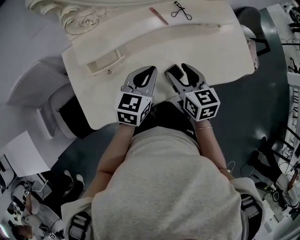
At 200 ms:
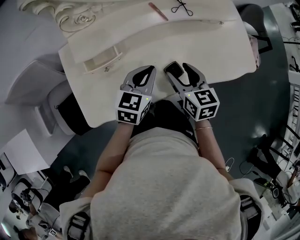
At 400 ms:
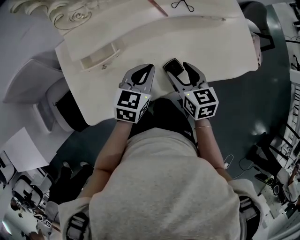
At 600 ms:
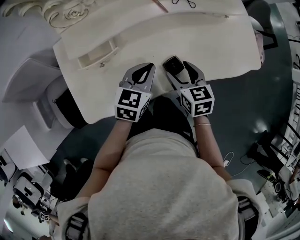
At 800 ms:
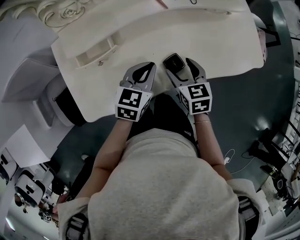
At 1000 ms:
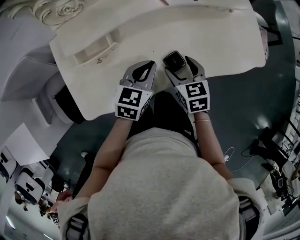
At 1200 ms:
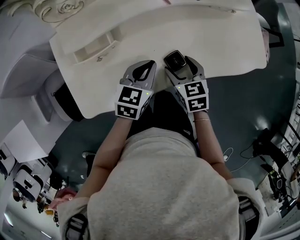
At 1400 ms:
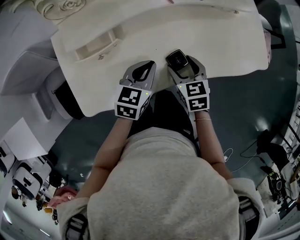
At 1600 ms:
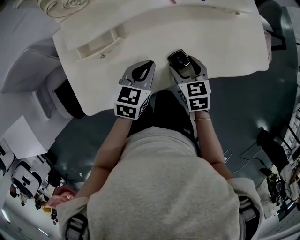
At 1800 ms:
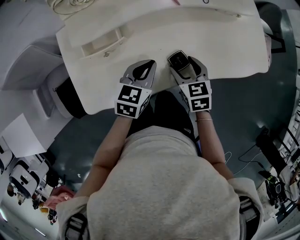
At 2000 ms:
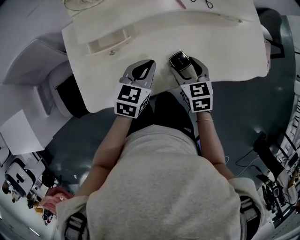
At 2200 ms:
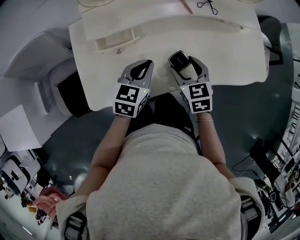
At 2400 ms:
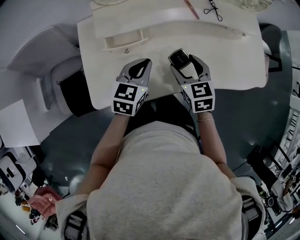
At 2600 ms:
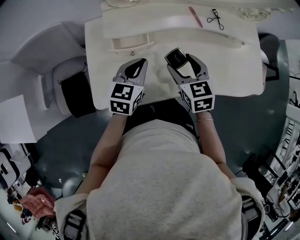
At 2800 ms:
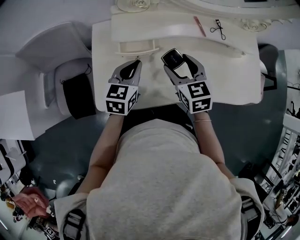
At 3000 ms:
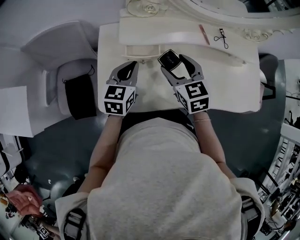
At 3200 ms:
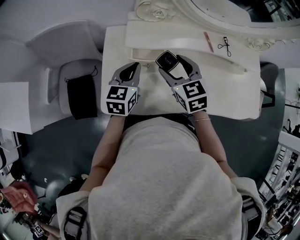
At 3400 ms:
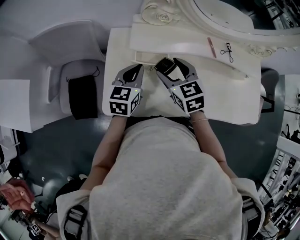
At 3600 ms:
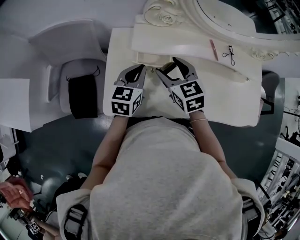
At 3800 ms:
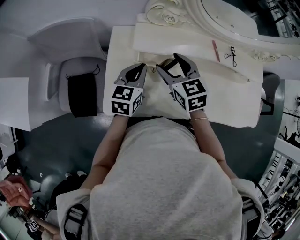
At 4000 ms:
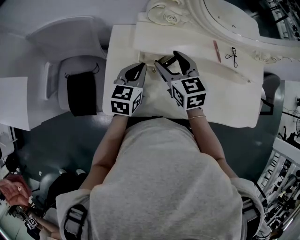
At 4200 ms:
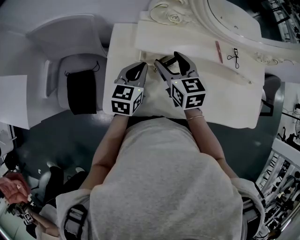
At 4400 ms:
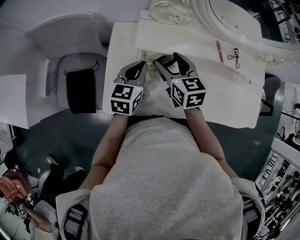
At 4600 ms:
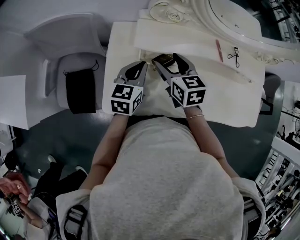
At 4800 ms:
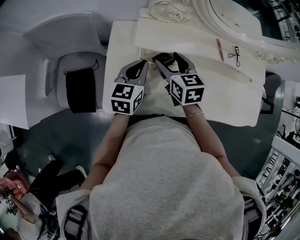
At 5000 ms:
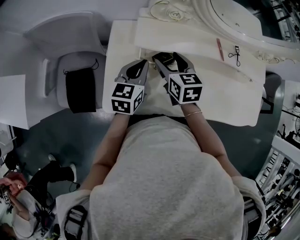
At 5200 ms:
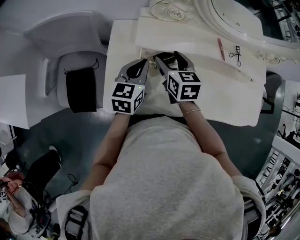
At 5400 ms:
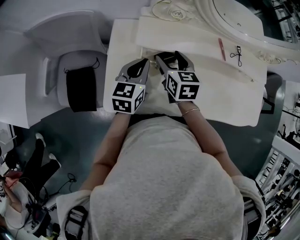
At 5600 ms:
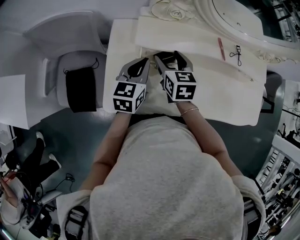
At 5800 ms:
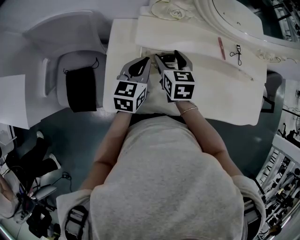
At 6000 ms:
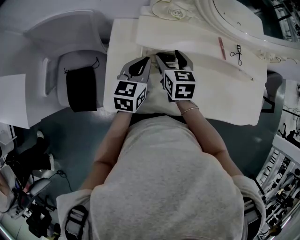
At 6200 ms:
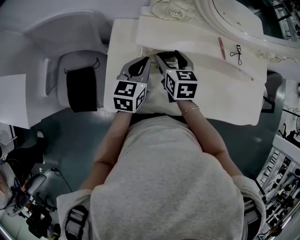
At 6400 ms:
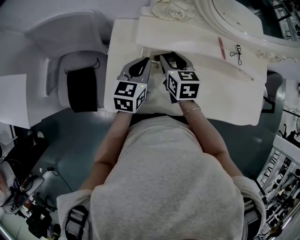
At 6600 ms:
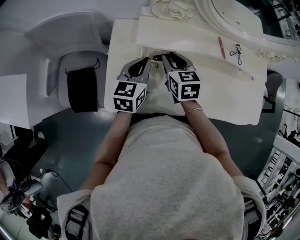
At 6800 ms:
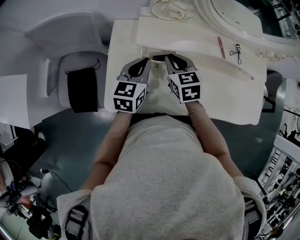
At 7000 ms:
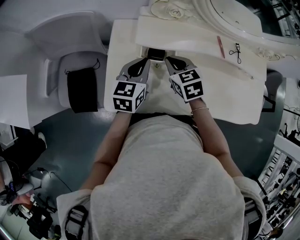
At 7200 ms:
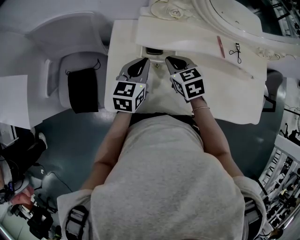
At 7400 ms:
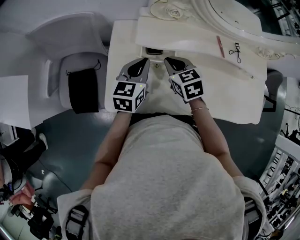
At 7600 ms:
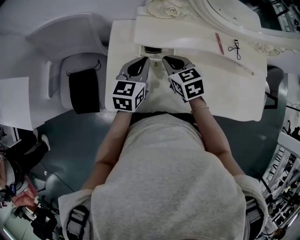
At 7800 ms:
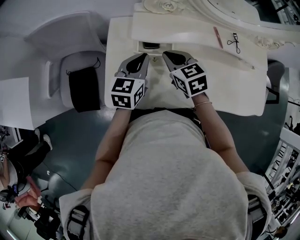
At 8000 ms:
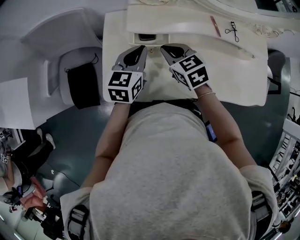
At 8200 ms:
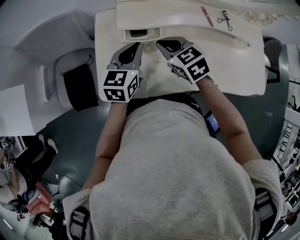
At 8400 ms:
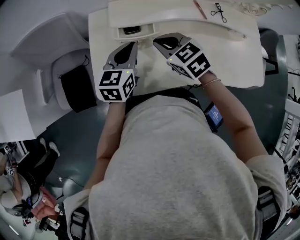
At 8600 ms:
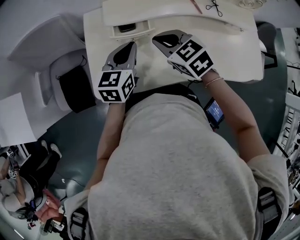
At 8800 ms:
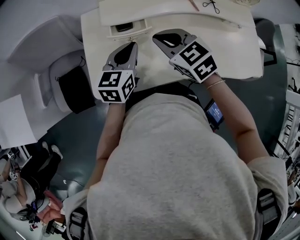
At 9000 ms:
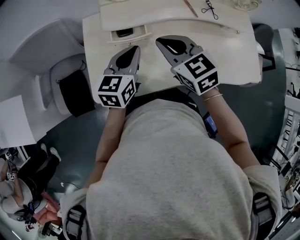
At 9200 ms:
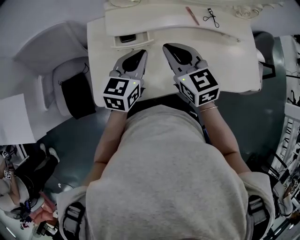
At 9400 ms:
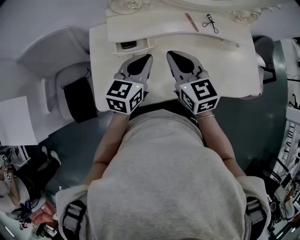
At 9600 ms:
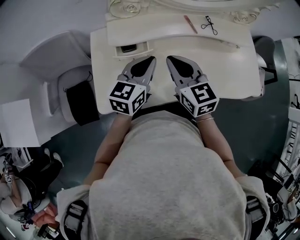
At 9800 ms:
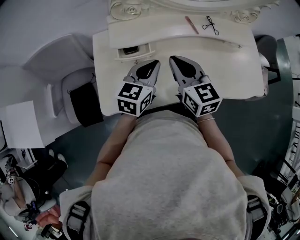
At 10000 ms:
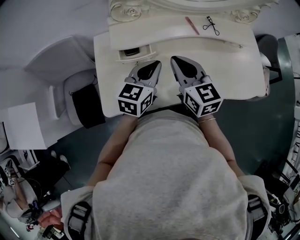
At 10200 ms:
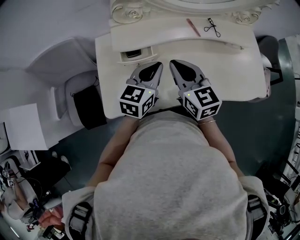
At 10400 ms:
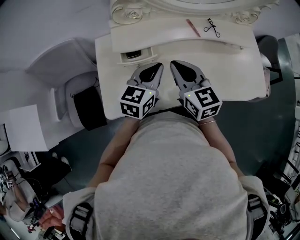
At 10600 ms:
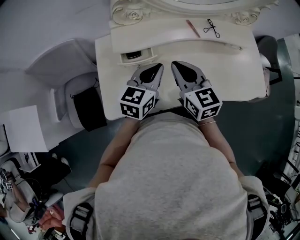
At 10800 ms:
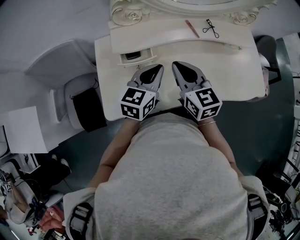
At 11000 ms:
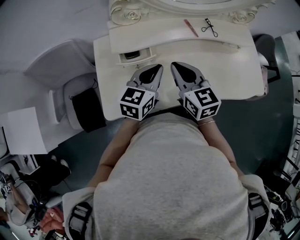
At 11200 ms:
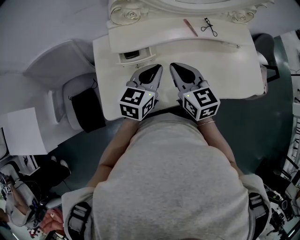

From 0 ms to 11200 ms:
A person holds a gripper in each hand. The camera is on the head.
From 0 ms to 1600 ms: Both grippers travel together downward, roughly 10 cm.
From 1600 ms to 3200 ms: The right gripper ends up some 25 cm from where it was, and turns by about 30 degrees; the left gripper moves roughly 20 cm, and turns by approximately 30 degrees.
From 3200 ms to 4800 ms: The right gripper goes roughly 5 cm forward.
From 4800 ms to 6400 ms: The right gripper closes up.
From 6400 ms to 8000 ms: The right gripper swivels about 20 degrees, and closes its fingers.
From 8000 ms to 9600 ms: The left gripper moves to the right, some 10 cm, while the right gripper goes roughly 15 cm upward, to the right and backward, and swivels roughly 30 degrees.
From 9600 ms to 11200 ms: The grippers move only a little.

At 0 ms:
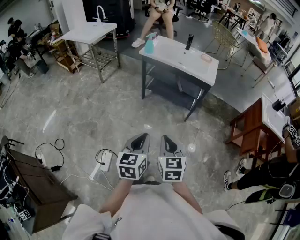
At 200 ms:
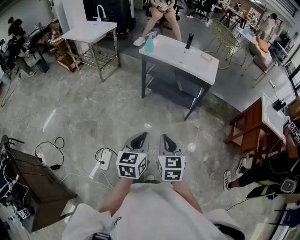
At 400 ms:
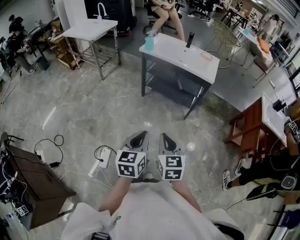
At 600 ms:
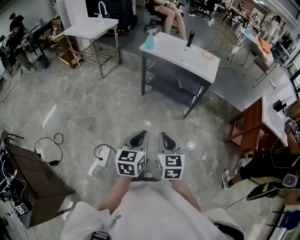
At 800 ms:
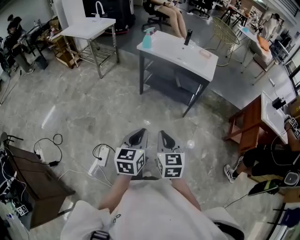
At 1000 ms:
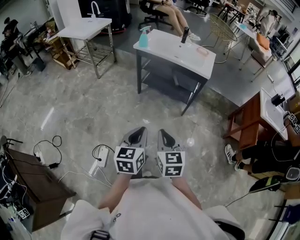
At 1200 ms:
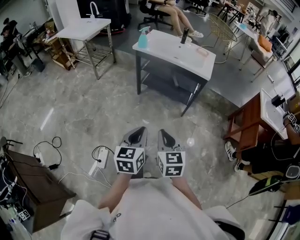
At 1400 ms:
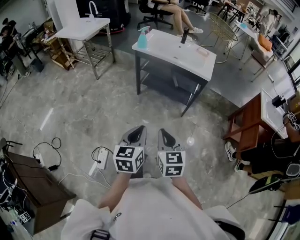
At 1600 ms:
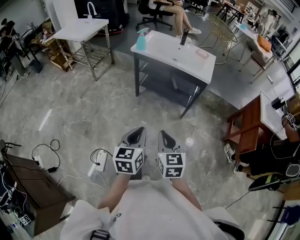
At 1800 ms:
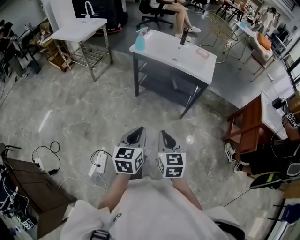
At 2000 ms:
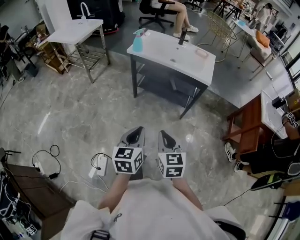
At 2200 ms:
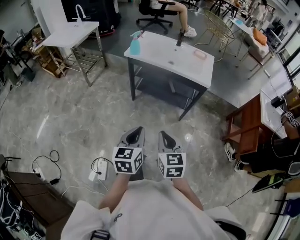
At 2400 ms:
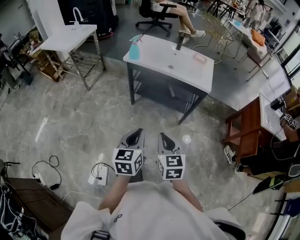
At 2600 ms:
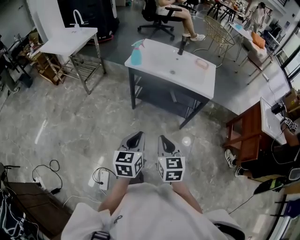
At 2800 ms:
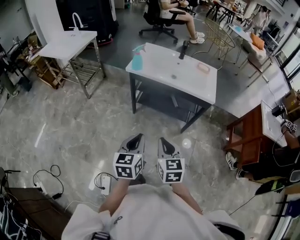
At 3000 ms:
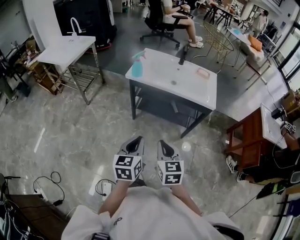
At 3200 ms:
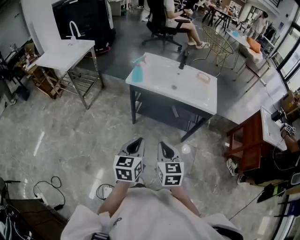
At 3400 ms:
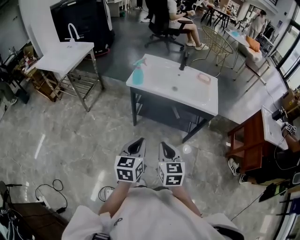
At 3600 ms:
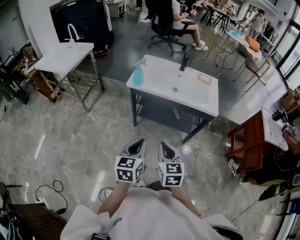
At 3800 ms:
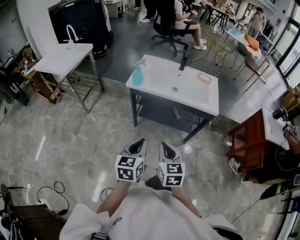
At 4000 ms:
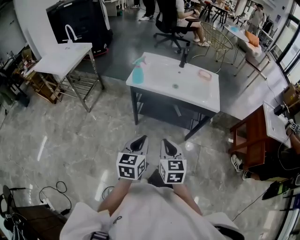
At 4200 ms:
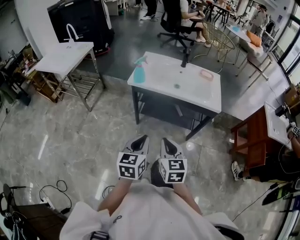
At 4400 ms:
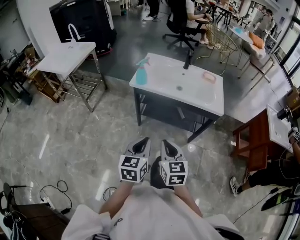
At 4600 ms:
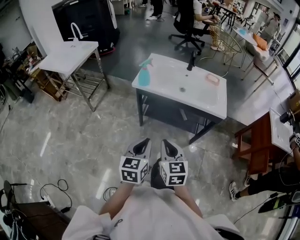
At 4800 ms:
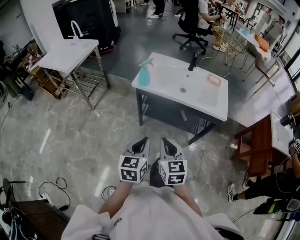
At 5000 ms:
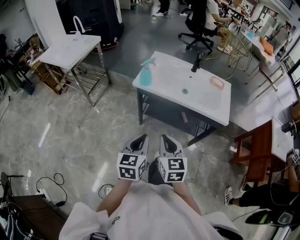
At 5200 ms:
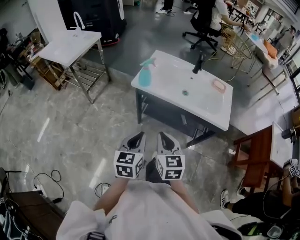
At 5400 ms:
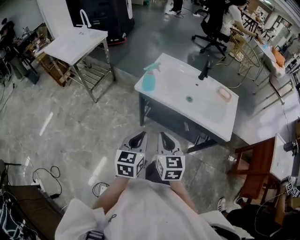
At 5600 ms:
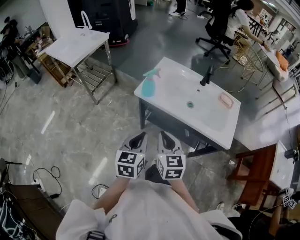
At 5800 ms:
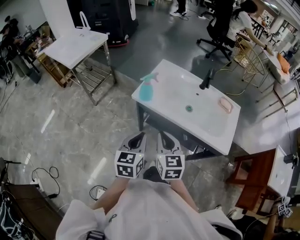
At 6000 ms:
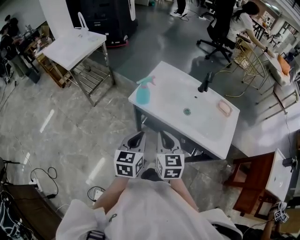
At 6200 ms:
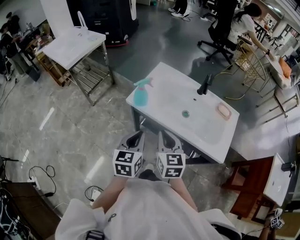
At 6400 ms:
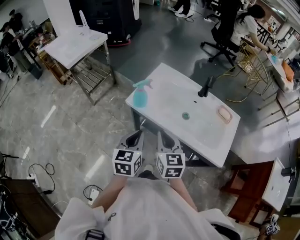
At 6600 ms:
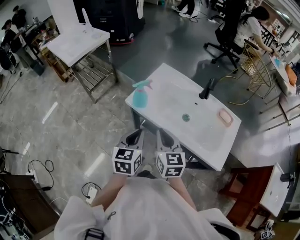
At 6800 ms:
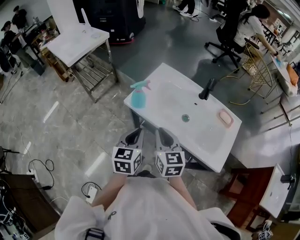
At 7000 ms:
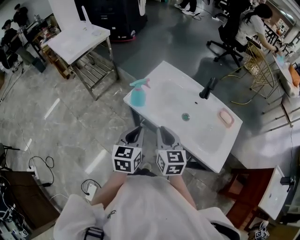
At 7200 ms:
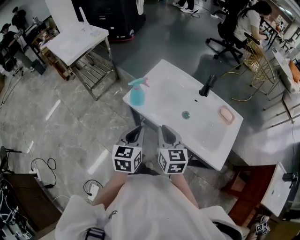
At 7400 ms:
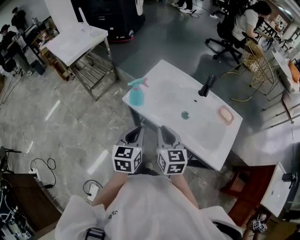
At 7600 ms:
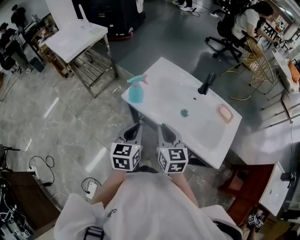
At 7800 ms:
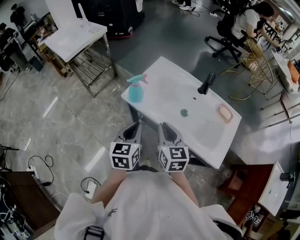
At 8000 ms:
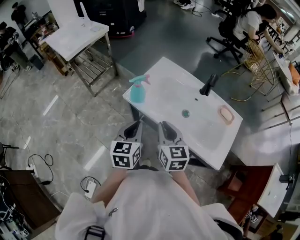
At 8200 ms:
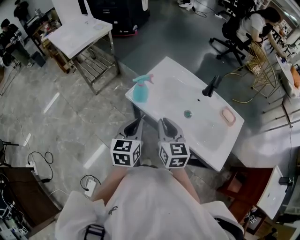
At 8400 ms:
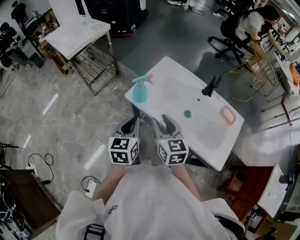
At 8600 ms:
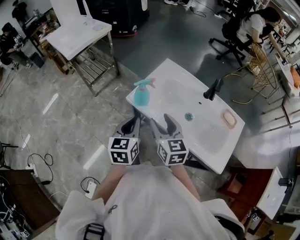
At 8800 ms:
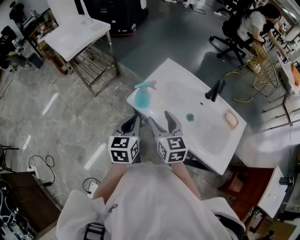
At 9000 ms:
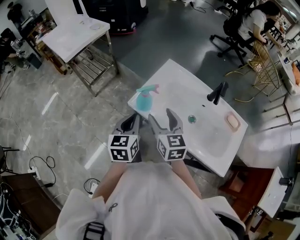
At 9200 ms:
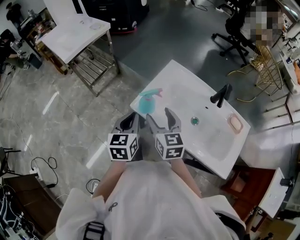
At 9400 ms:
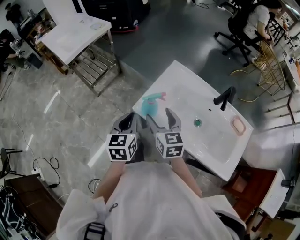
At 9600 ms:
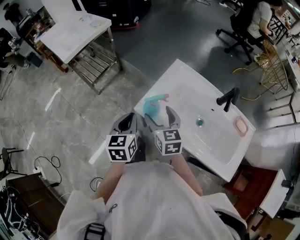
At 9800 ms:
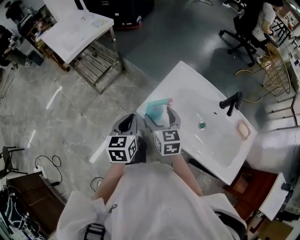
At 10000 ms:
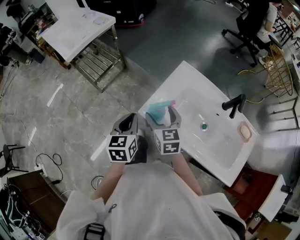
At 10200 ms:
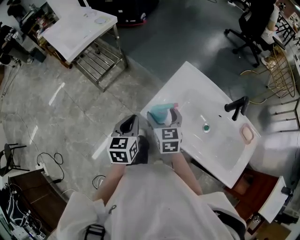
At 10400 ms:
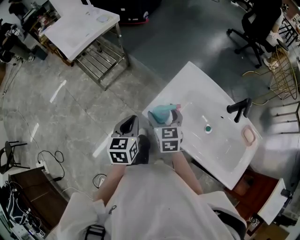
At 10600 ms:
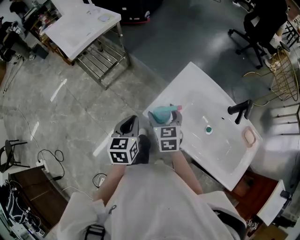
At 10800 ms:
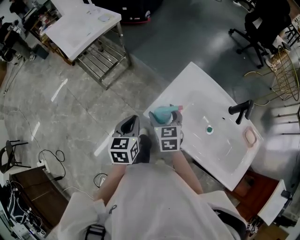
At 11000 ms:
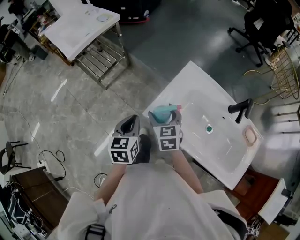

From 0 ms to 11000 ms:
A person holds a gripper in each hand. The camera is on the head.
From 0 ms to 1600 ms: Both grippers travel together forward, about 5 cm.
From 1600 ms to 3200 ms: Both grippers travel together forward and to the left, roughly 25 cm.
From 3200 ms to 4800 ms: Both grippers move forward, some 5 cm.
From 4800 ms to 6200 ms: The grippers both shift forward by some 20 cm.
From 6200 ms to 7800 ms: The right gripper changes place by approximately 5 cm.
From 7800 ms to 9400 ms: Both grippers move forward and to the left, roughly 15 cm. The right gripper opens up.
From 9400 ms to 11000 ms: The right gripper is displaced forward and downward by approximately 10 cm, while the left gripper changes place by some 5 cm.

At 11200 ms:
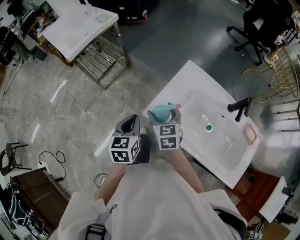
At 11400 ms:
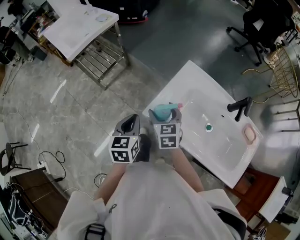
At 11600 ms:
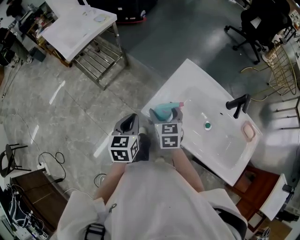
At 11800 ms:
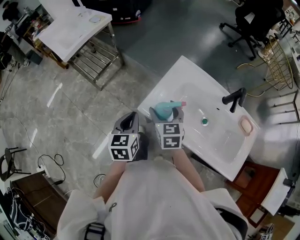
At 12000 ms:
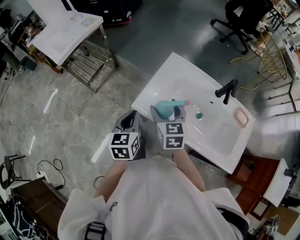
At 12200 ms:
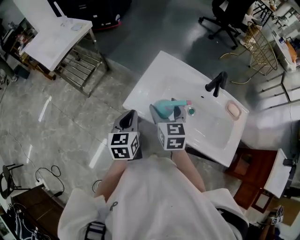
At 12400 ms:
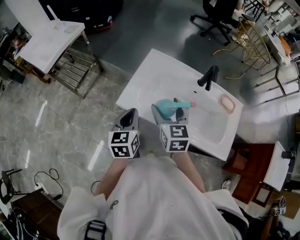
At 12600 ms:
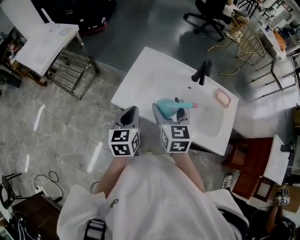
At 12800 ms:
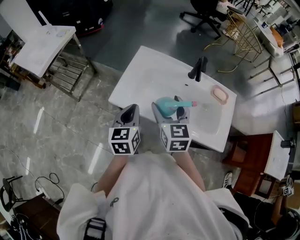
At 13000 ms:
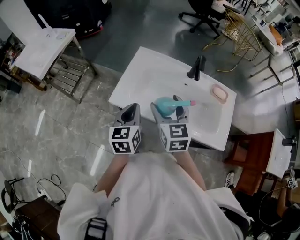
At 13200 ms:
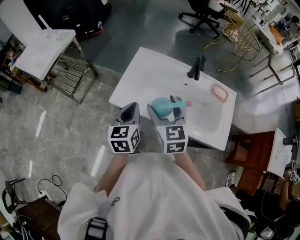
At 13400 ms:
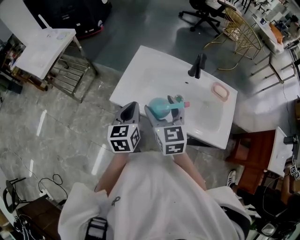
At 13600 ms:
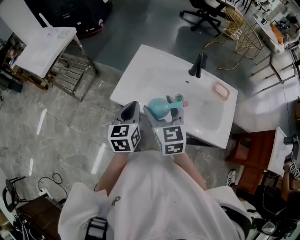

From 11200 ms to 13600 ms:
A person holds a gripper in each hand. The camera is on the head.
From 11200 ms to 12400 ms: The right gripper heads to the right, upward and backward, covering approximately 20 cm, while the left gripper shifts some 10 cm to the right.
From 12400 ms to 13600 ms: The left gripper ends up roughly 5 cm from where it was. Meanwhile the right gripper is displaced backward by approximately 5 cm.
